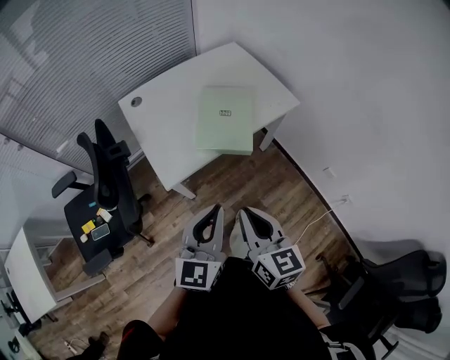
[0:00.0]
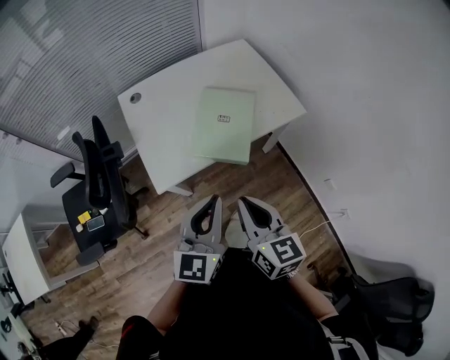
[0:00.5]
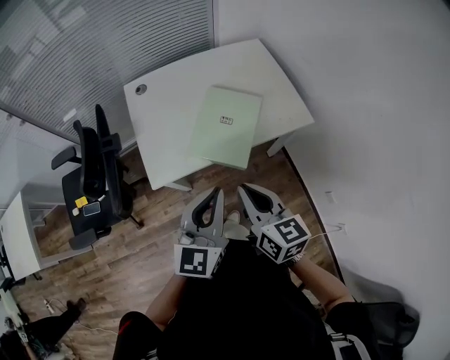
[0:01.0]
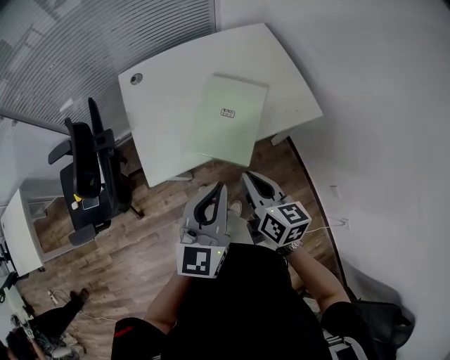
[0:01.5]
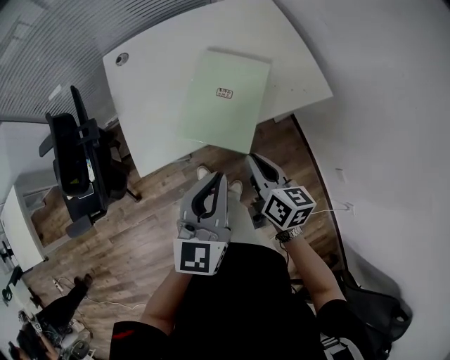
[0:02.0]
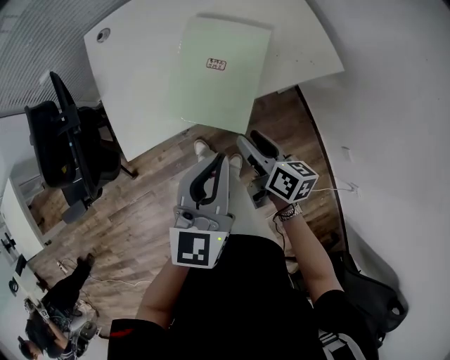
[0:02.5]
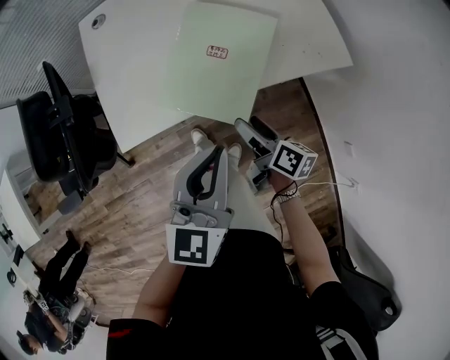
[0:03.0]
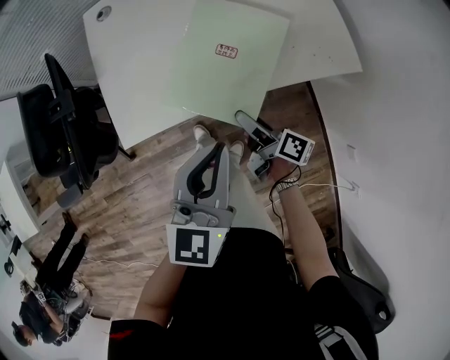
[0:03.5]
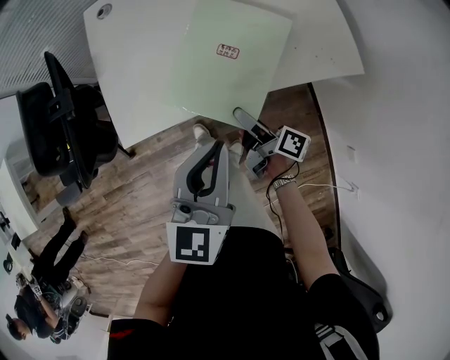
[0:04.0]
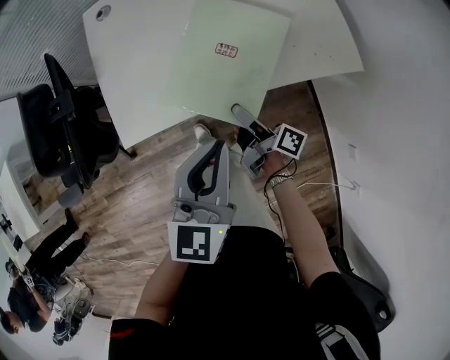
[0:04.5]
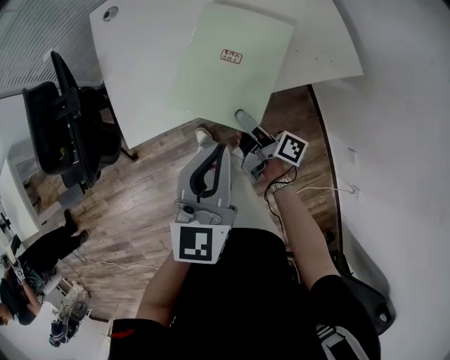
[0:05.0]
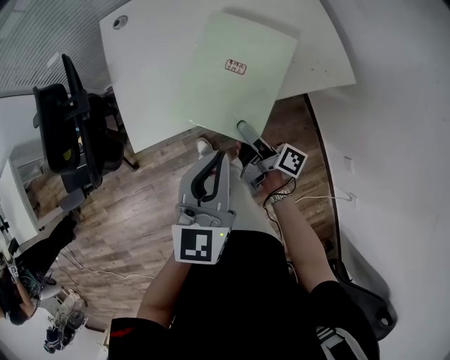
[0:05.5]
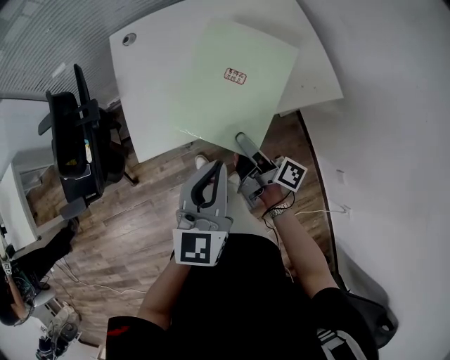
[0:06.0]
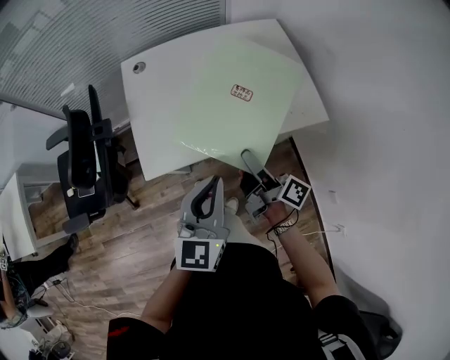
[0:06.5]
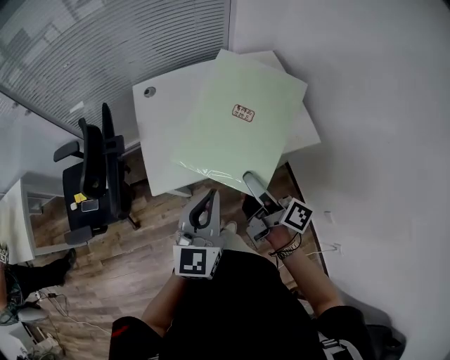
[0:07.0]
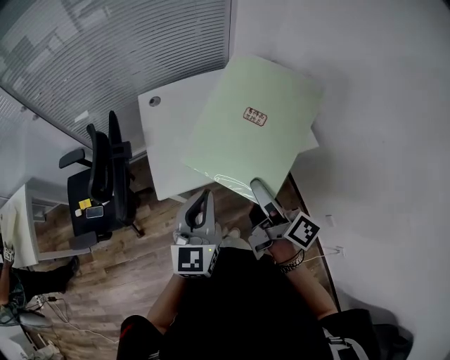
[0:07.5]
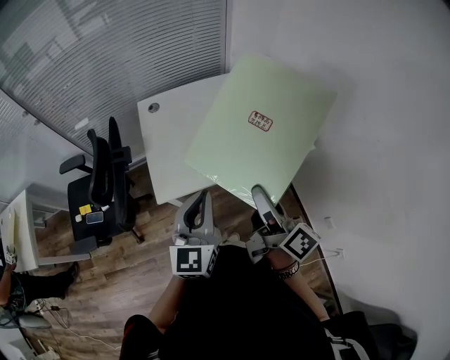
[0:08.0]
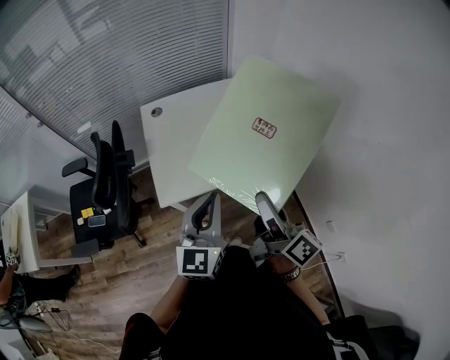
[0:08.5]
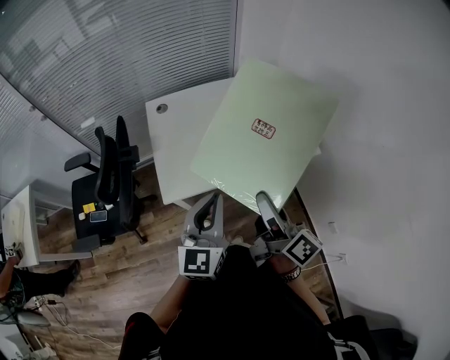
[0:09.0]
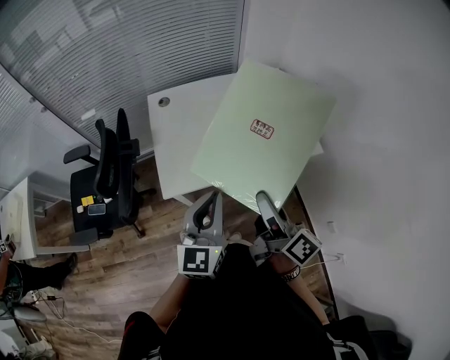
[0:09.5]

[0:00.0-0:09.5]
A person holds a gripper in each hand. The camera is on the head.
0:00.0 to 0:02.0: The right gripper goes roughly 30 cm forward, downward and to the right, and changes its angle by about 20 degrees. Meanwhile the left gripper travels forward, to the right and downward by approximately 20 cm.
0:02.0 to 0:04.0: The right gripper heads downward, covering about 15 cm, rotates about 40 degrees, and opens up. Meanwhile the left gripper travels downward by roughly 5 cm.
0:04.0 to 0:05.5: The grippers stay close to where they were, moving slightly.
0:05.5 to 0:07.5: The left gripper travels upward and to the left by approximately 15 cm, while the right gripper shifts roughly 30 cm upward, and turns by roughly 20 degrees.
0:07.5 to 0:09.5: The grippers move only a little.

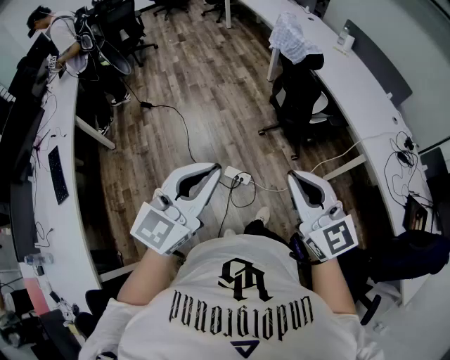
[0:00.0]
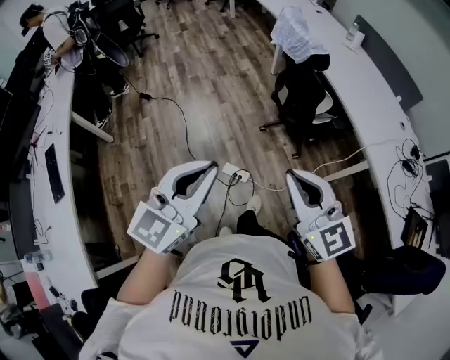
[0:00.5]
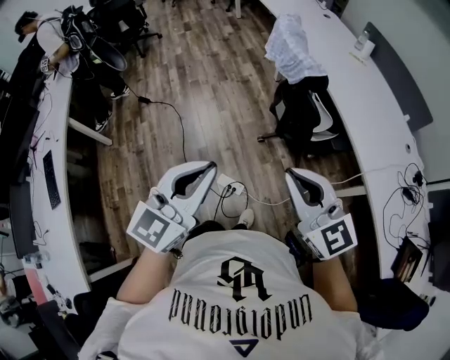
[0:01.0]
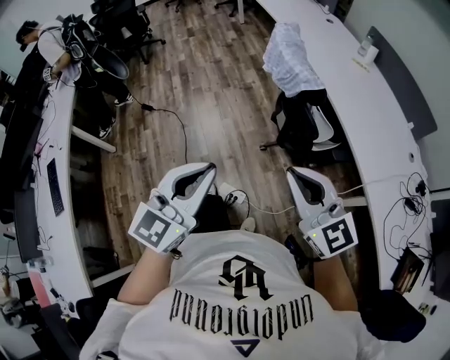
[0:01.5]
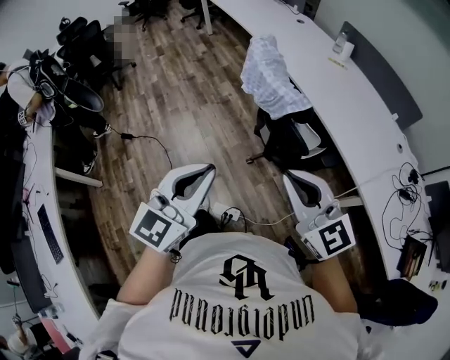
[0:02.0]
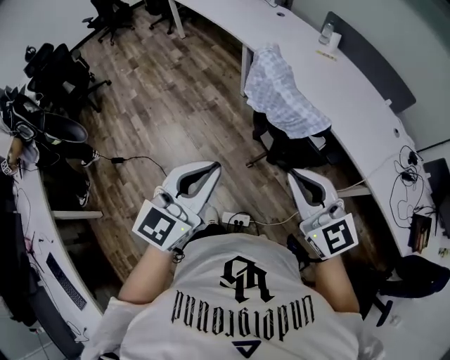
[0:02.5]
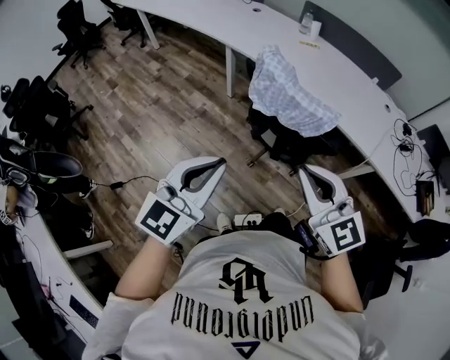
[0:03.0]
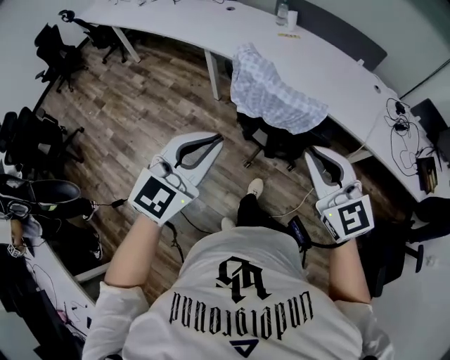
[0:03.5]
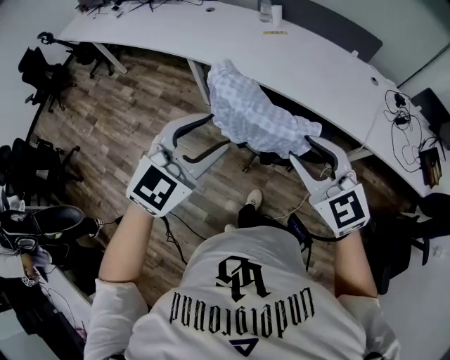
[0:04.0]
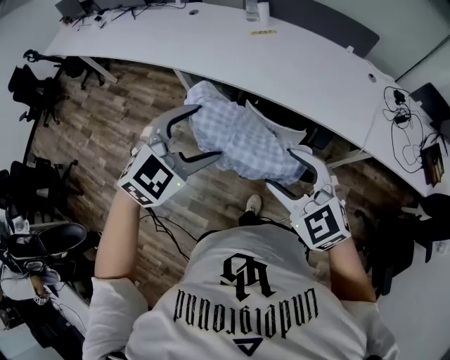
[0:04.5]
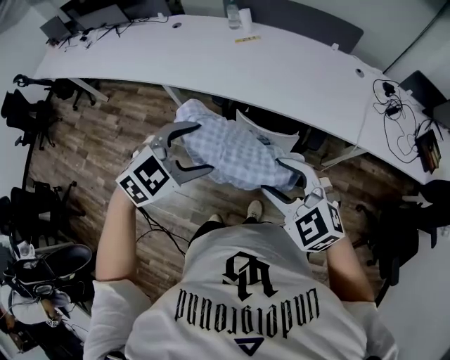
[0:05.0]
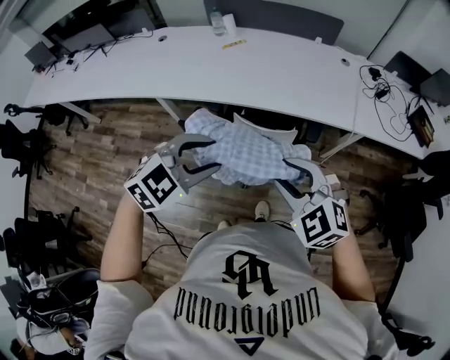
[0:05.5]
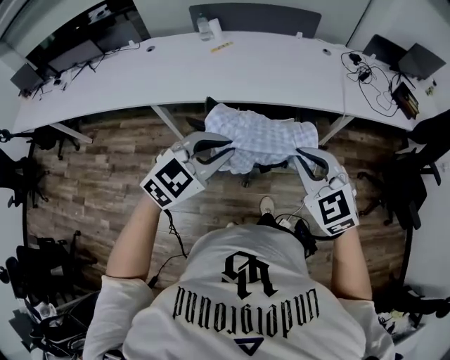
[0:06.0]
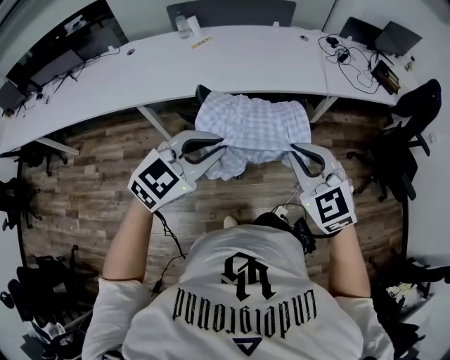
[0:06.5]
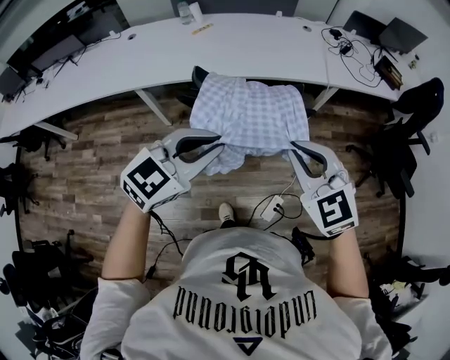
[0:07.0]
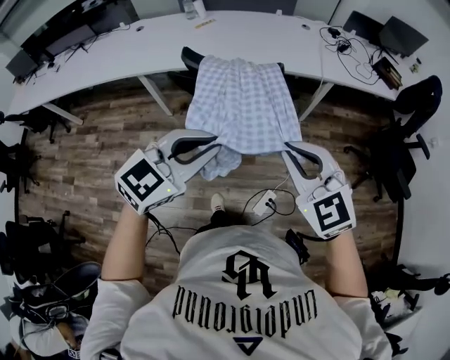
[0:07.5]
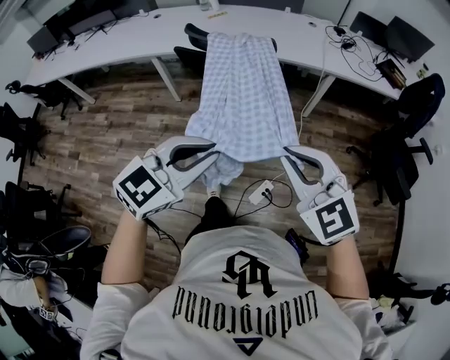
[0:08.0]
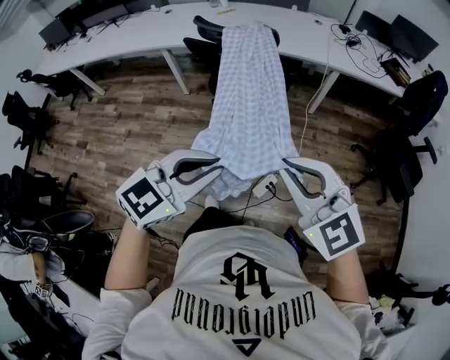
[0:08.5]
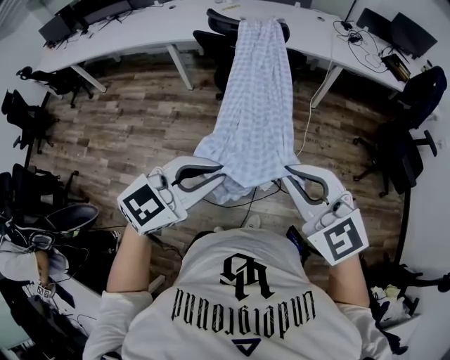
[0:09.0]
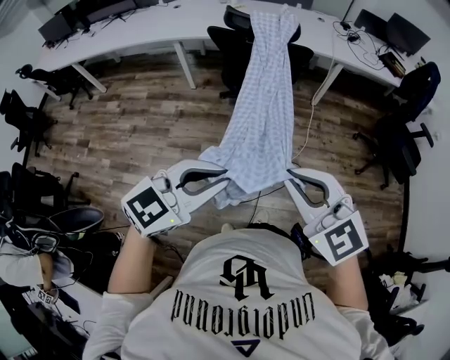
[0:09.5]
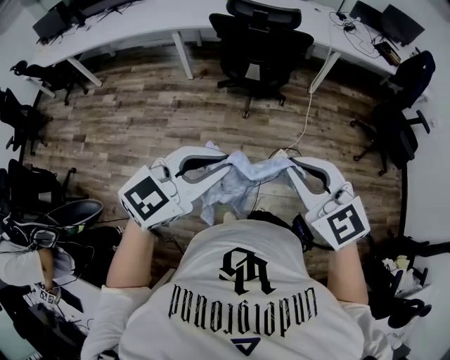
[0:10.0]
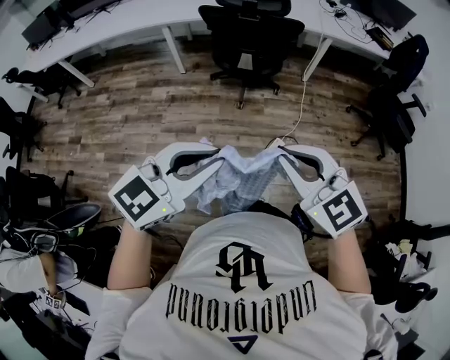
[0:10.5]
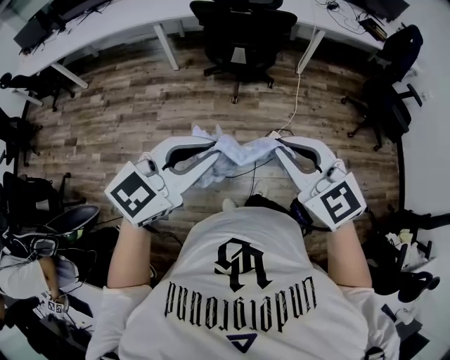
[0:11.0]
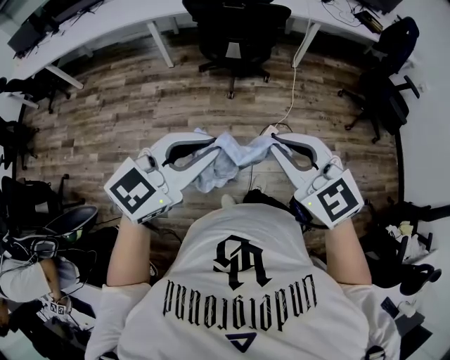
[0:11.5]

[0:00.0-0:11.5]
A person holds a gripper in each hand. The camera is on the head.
0:00.0 to 0:02.0: Both grippers travel together forward, approximately 35 cm.
0:02.0 to 0:04.0: The left gripper ends up about 30 cm from where it was, swivels approximately 50 degrees, and opens. Meanwhile the right gripper ends up roughly 20 cm from where it was, turns by roughly 40 degrees, and opens.
0:04.0 to 0:06.0: The left gripper changes its angle by some 30 degrees, and opens, then closes once more. The right gripper changes its angle by roughly 30 degrees, and closes up.
0:06.0 to 0:07.5: The grippers both shift backward and to the right by some 20 cm.
0:07.5 to 0:09.5: The grippers both shift backward by approximately 35 cm.
0:09.5 to 0:11.5: The two grippers go approximately 5 cm backward.

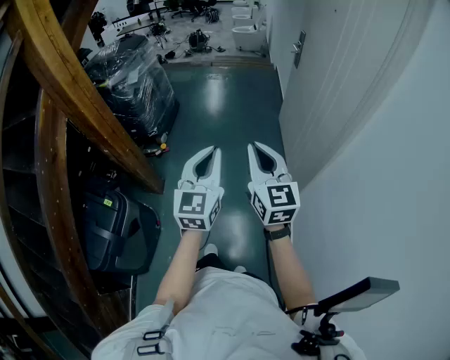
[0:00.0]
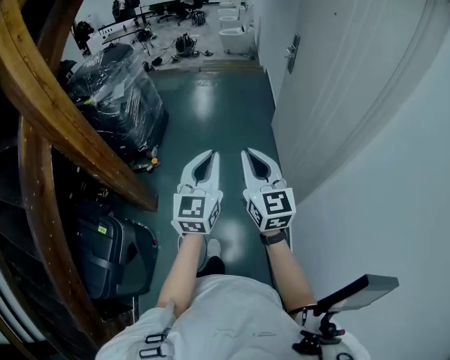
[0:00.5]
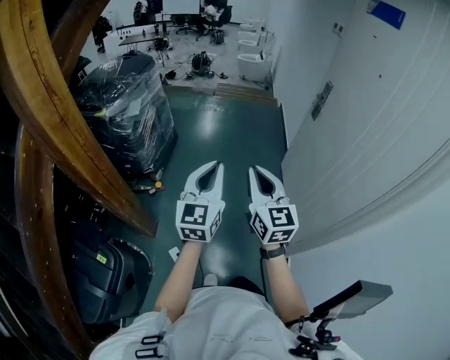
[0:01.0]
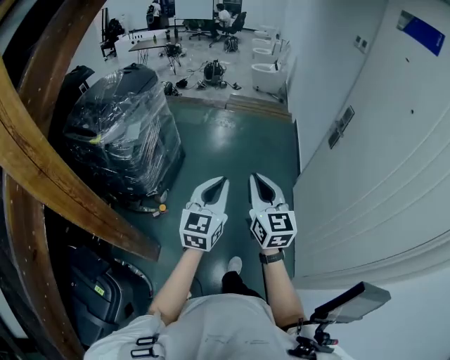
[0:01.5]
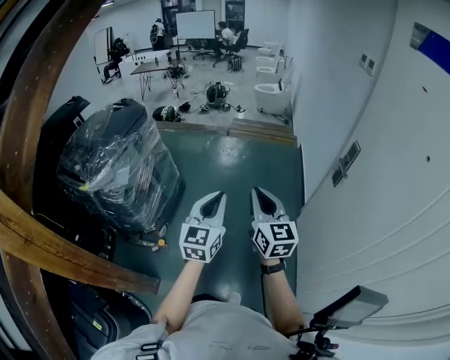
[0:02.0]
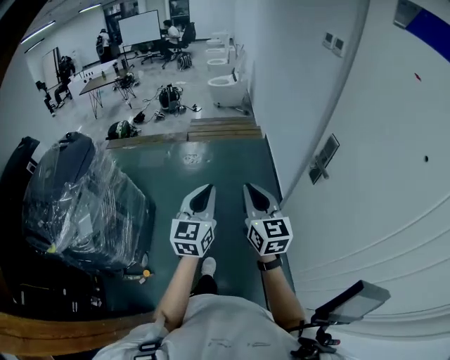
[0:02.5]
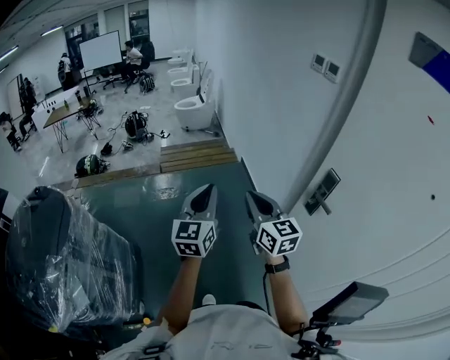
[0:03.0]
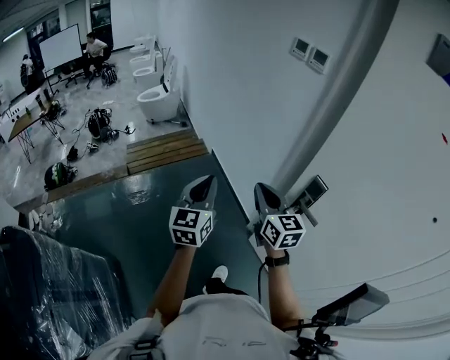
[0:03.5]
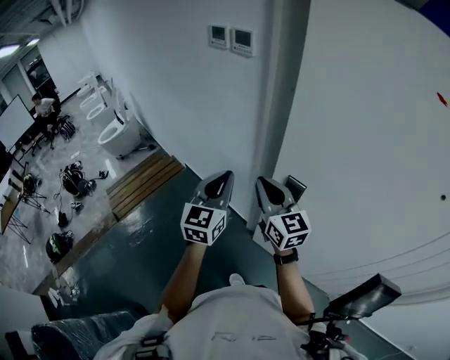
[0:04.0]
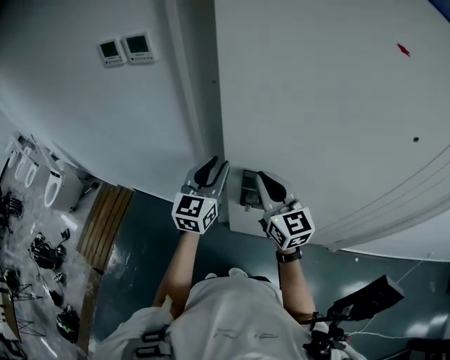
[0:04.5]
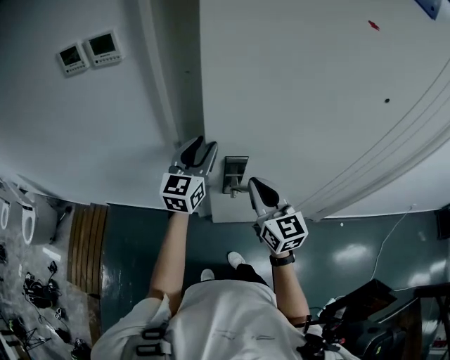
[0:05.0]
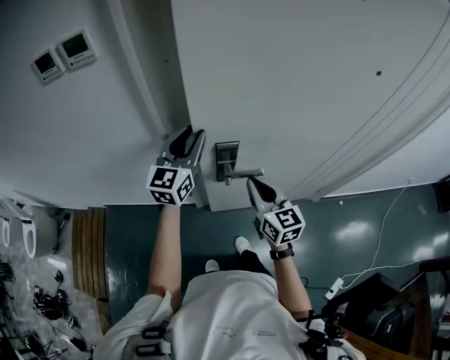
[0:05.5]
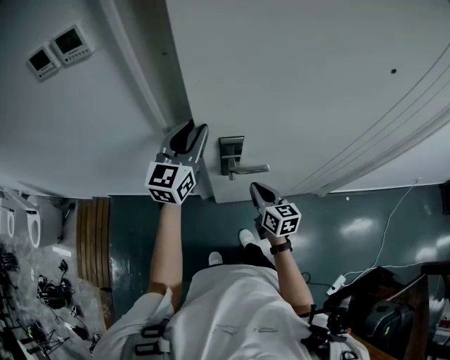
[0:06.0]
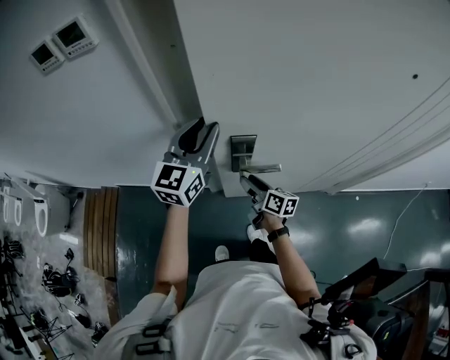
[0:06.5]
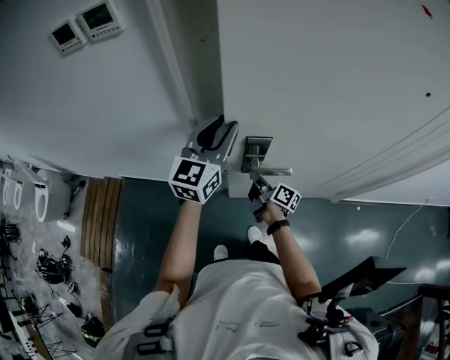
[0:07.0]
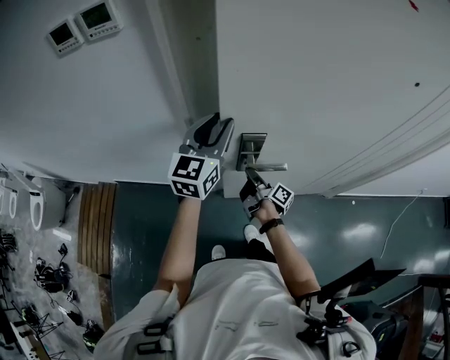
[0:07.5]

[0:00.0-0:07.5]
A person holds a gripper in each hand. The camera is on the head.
0:00.0 to 0:02.0: The two grippers travel together, forward, some 60 cm.
0:02.0 to 0:04.0: Both grippers are carried about 60 cm. The right gripper swivels approximately 50 degrees, while the left gripper turns by about 60 degrees.
0:04.0 to 0:05.5: The right gripper ends up about 20 cm from where it was, and swivels about 50 degrees. The left gripper changes place by approximately 20 cm, rotates some 40 degrees, and opens.
0:05.5 to 0:07.5: The right gripper travels downward by some 20 cm, rolls clockwise, seen from behind, by roughly 80 degrees, and opens and closes again.
